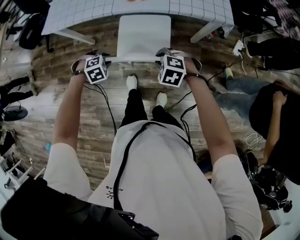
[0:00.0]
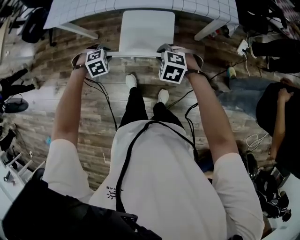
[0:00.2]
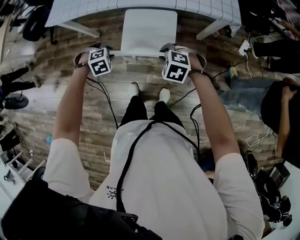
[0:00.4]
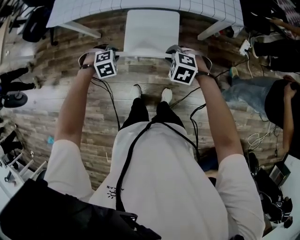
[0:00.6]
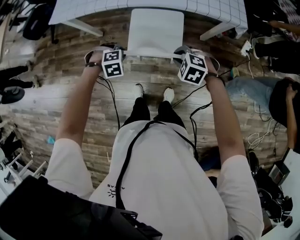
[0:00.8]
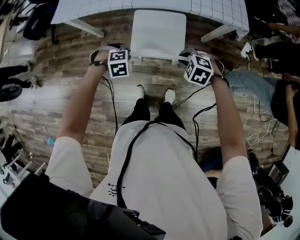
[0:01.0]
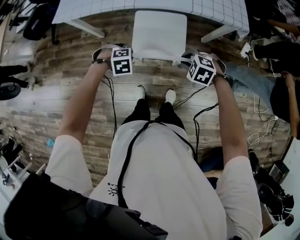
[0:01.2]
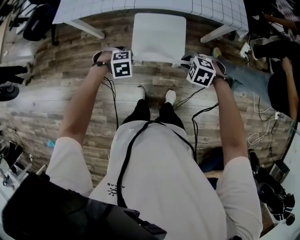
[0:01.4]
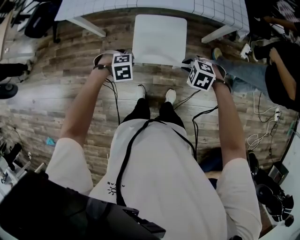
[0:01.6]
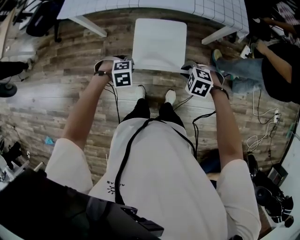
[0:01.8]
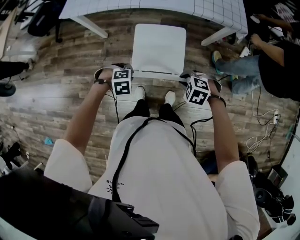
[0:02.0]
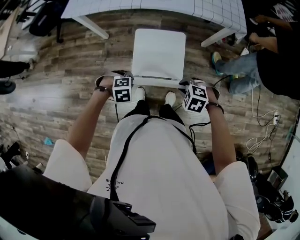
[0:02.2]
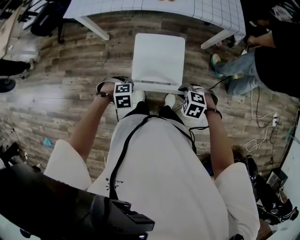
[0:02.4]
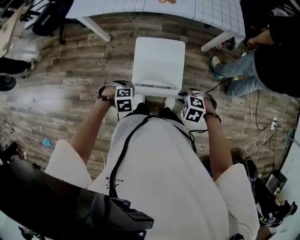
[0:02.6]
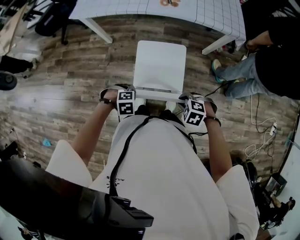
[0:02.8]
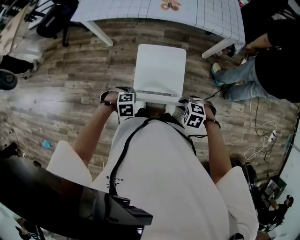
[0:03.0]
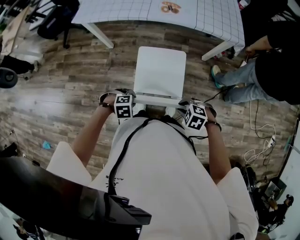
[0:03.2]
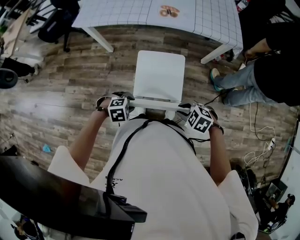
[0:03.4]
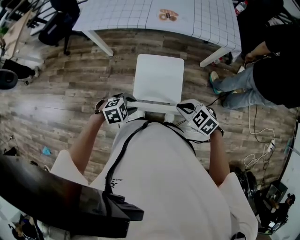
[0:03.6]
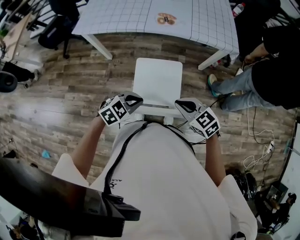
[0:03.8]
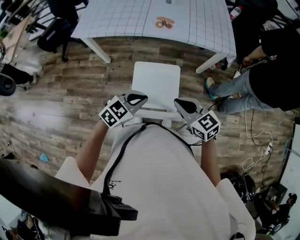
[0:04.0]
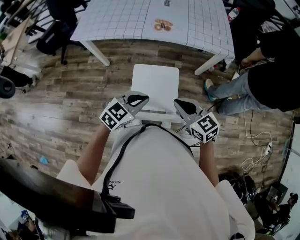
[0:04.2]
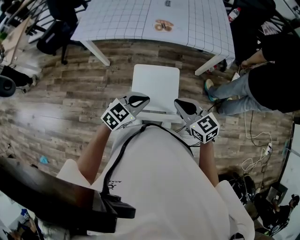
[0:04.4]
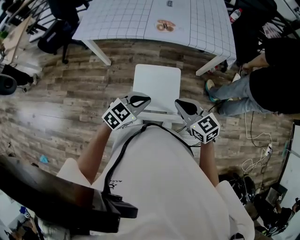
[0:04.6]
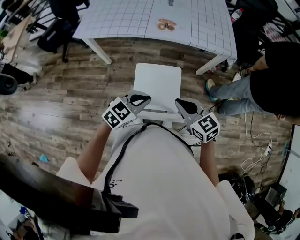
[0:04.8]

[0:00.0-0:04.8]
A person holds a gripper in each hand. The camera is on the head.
0:00.0 to 0:01.6: The left gripper changes place by approximately 5 cm. Meanwhile the right gripper changes place by some 5 cm.
0:01.6 to 0:03.2: The left gripper ends up approximately 20 cm from where it was. Meanwhile the right gripper moves about 20 cm.
0:03.2 to 0:04.8: The grippers both shift upward by some 15 cm. The right gripper points its fingers some 40 degrees further upward, and closes up, while the left gripper angles its fingers upward, by some 40 degrees, and closes up.

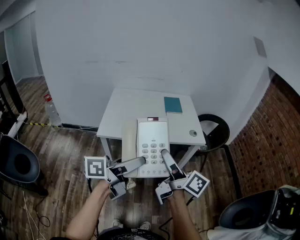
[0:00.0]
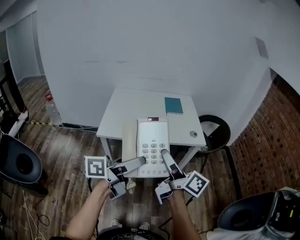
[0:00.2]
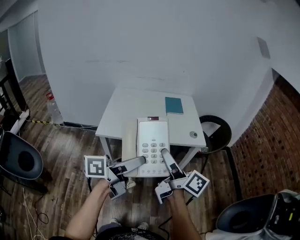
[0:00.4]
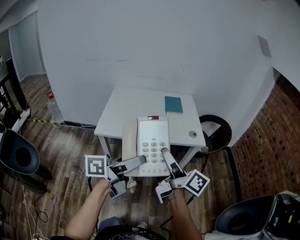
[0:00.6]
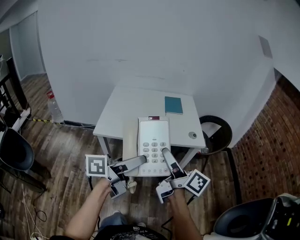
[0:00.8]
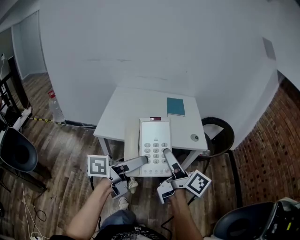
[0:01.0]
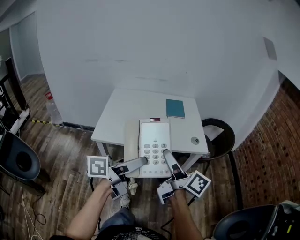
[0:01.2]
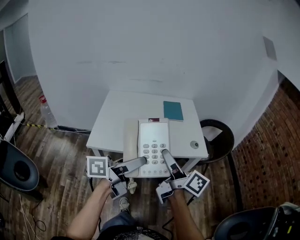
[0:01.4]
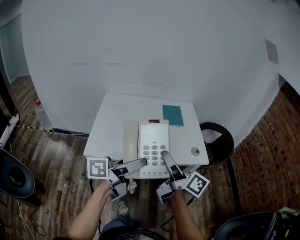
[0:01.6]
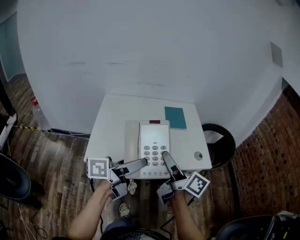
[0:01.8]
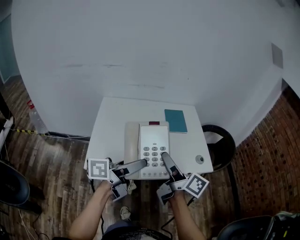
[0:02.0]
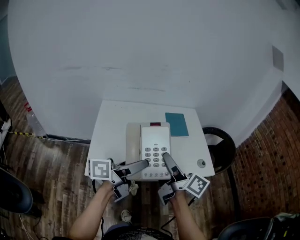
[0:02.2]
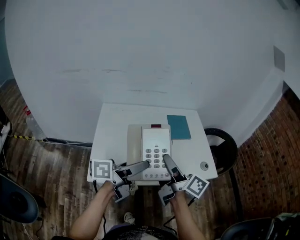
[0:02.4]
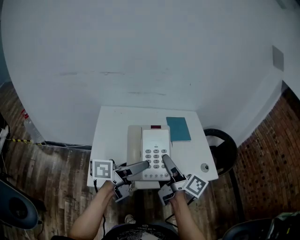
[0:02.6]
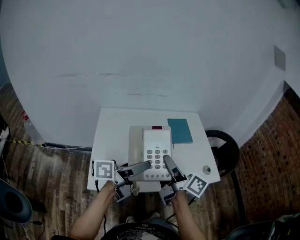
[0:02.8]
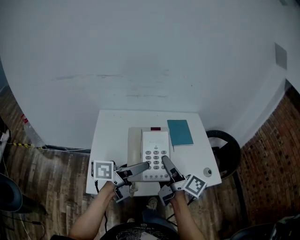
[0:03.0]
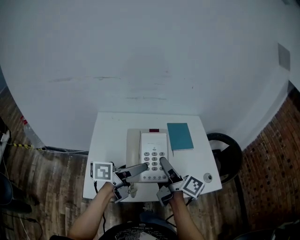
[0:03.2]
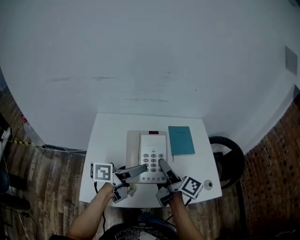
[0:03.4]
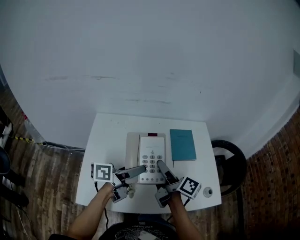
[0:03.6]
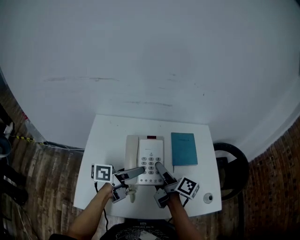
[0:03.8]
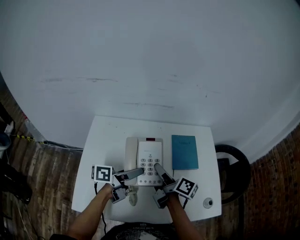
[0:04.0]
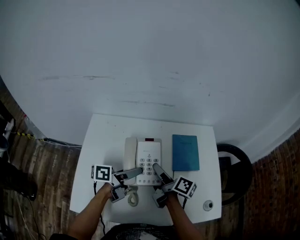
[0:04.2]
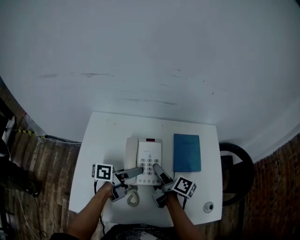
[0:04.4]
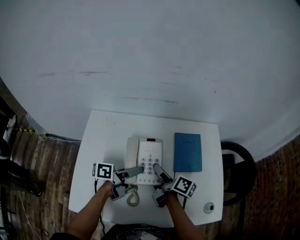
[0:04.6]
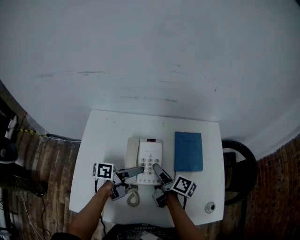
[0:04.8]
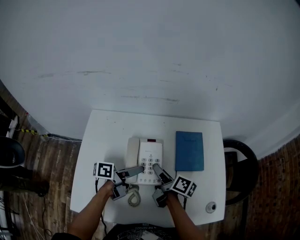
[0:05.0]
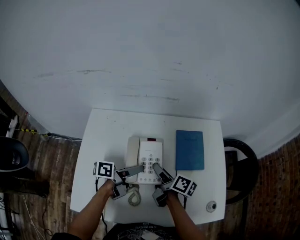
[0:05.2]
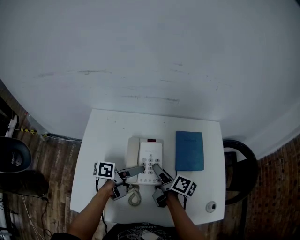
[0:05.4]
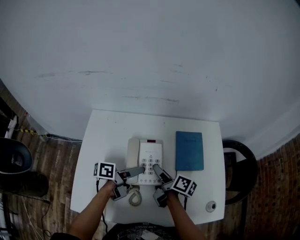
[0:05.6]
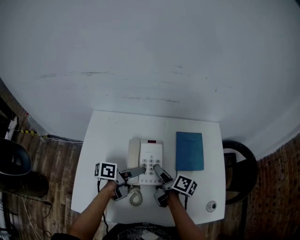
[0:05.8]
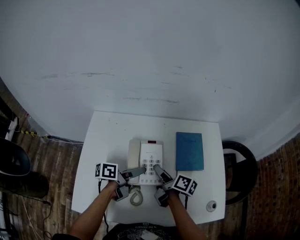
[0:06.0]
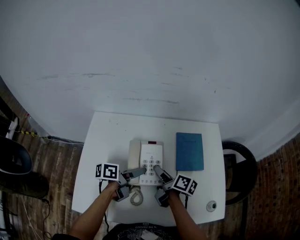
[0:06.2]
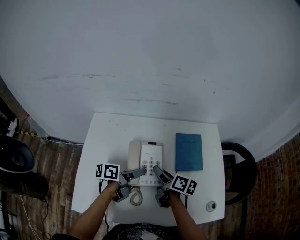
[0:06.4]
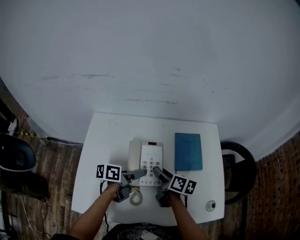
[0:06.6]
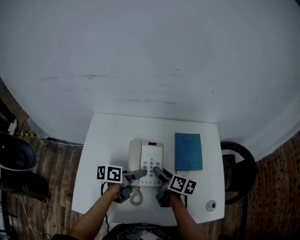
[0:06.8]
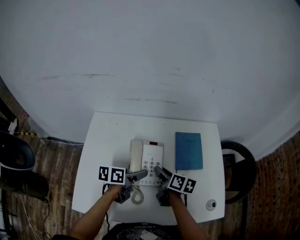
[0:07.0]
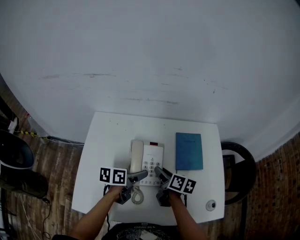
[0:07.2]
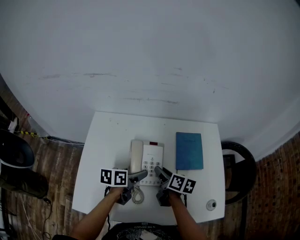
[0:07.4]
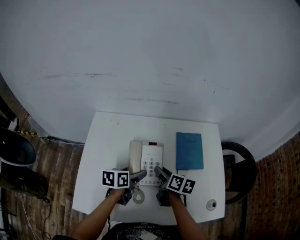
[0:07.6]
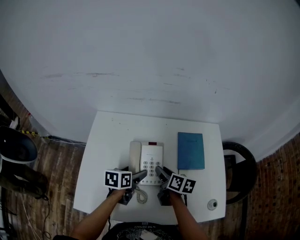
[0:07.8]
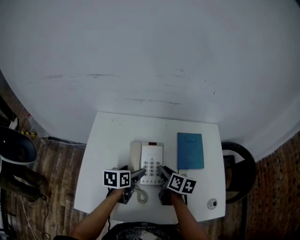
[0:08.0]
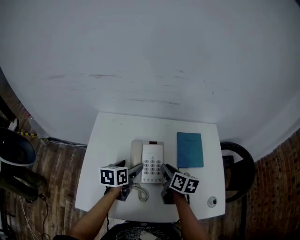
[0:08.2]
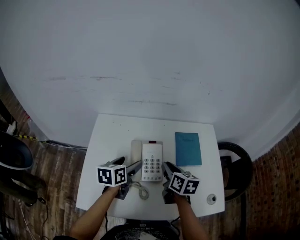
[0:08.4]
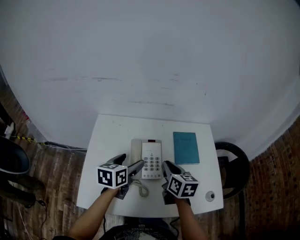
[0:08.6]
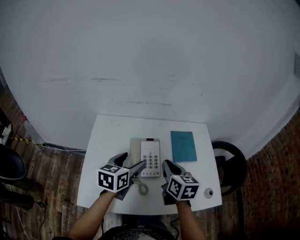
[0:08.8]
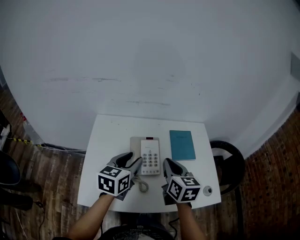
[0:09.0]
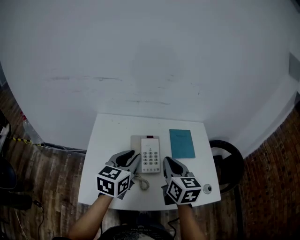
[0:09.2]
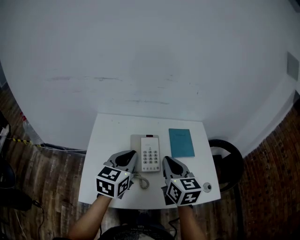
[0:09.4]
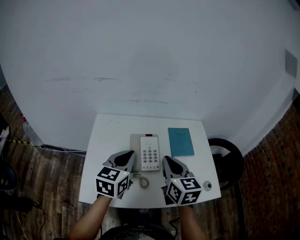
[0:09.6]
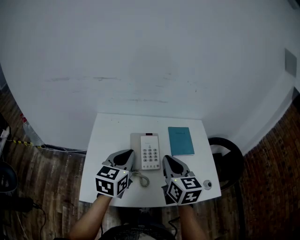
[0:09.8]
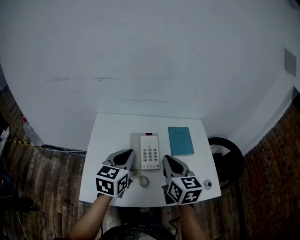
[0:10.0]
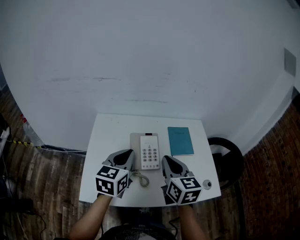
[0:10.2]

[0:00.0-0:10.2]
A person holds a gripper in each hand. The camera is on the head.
0:00.0 to 0:01.4: Both grippers travel together forward, roughly 15 cm.
0:01.4 to 0:03.0: The two grippers go approximately 25 cm forward and to the left.
0:03.0 to 0:04.4: The two grippers go some 25 cm forward and downward. The right gripper turns by some 20 degrees.
0:04.4 to 0:05.8: The grippers stay close to where they were, moving slightly.
0:05.8 to 0:07.2: The right gripper swivels about 20 degrees. Meanwhile the left gripper turns by about 30 degrees.
0:07.2 to 0:08.8: The left gripper goes about 15 cm upward, and turns by some 30 degrees, while the right gripper travels upward and backward by about 15 cm, swivels about 30 degrees, and closes up.
0:08.8 to 0:10.2: The two grippers go approximately 10 cm upward and backward. The left gripper closes.

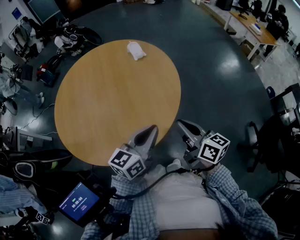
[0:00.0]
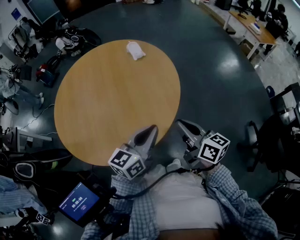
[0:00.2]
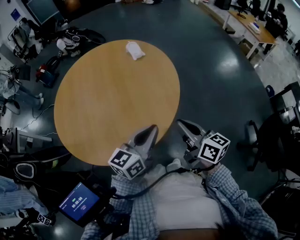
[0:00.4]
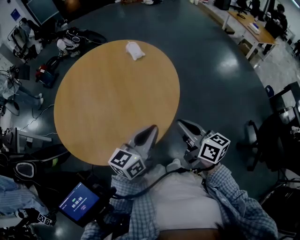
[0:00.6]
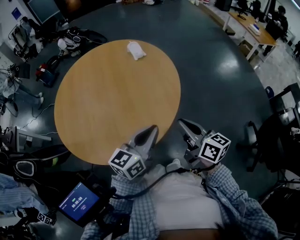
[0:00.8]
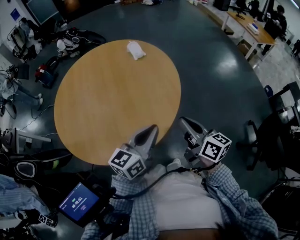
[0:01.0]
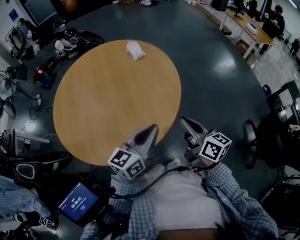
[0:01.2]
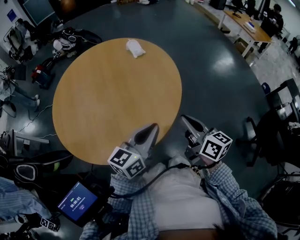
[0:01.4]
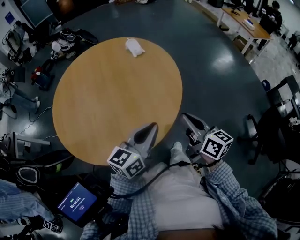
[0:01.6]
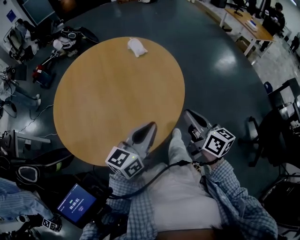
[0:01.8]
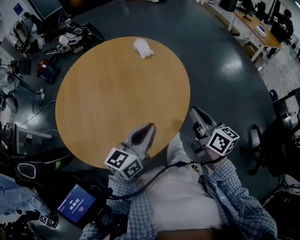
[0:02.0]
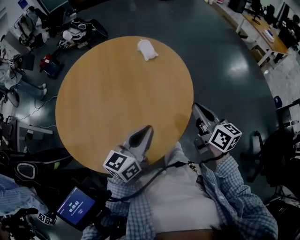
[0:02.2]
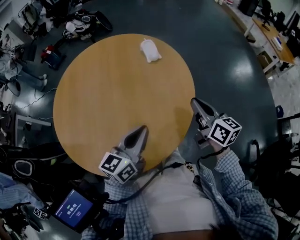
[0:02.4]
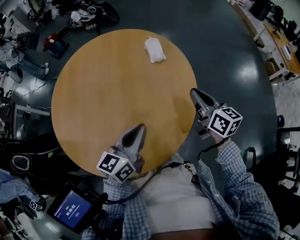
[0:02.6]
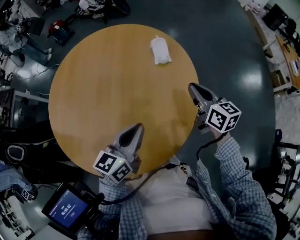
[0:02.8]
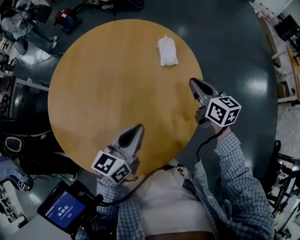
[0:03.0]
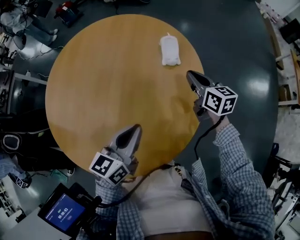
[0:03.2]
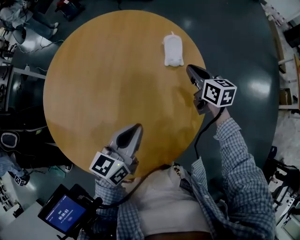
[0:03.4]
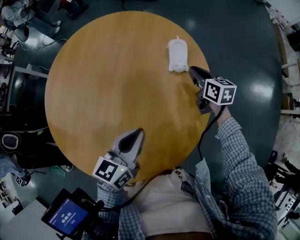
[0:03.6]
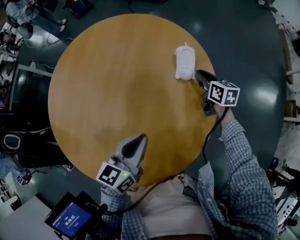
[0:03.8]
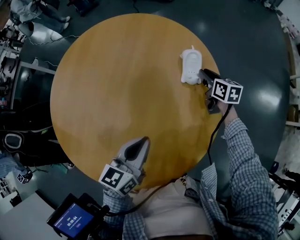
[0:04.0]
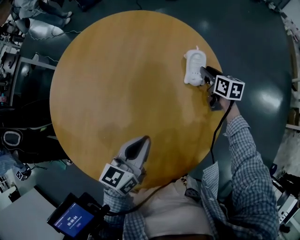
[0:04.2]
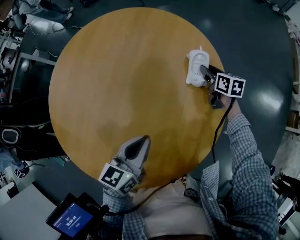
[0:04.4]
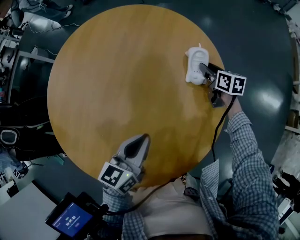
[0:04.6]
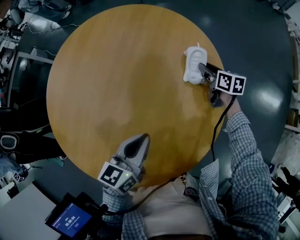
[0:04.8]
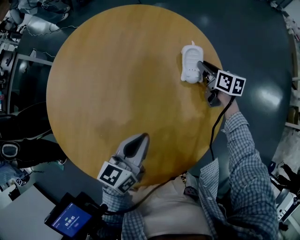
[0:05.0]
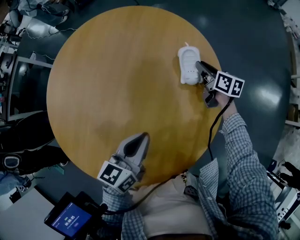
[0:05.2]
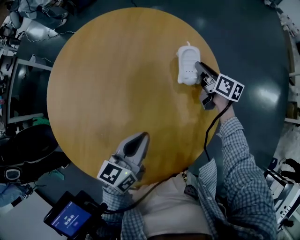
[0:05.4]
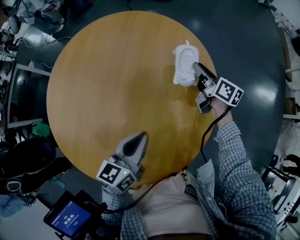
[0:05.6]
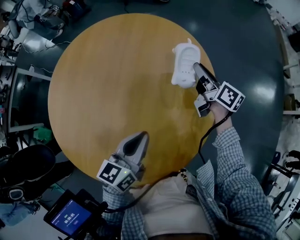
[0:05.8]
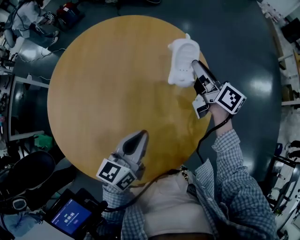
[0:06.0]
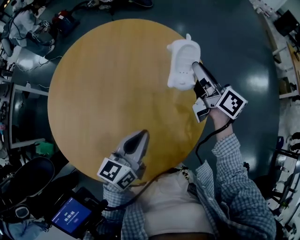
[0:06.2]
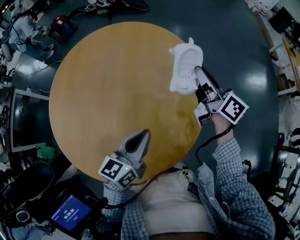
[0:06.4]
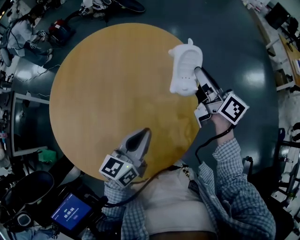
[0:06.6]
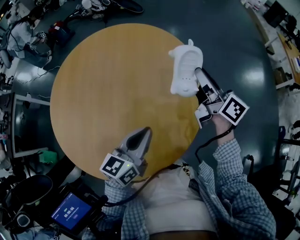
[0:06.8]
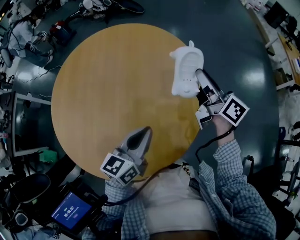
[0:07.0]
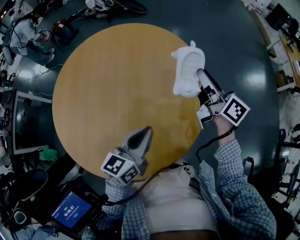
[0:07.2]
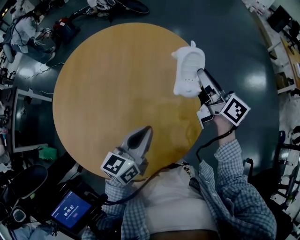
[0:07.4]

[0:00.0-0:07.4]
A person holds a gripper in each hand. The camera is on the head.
0:00.0 to 0:01.4: The grippers stay close to where they were, moving slightly.
0:01.4 to 0:03.0: The left gripper moves roughly 25 cm, and swivels approximately 30 degrees. Meanwhile the right gripper ends up roughly 40 cm from where it was, and rotates approximately 30 degrees.
0:03.0 to 0:04.4: The right gripper travels forward and downward by about 25 cm, changes its angle by roughly 20 degrees, and opens; the left gripper moves forward, some 5 cm.
0:04.4 to 0:06.0: The right gripper travels upward and backward by approximately 20 cm, and points its fingers roughly 40 degrees further upward, while the left gripper shifts approximately 5 cm backward.
0:06.0 to 0:07.4: The right gripper goes about 15 cm backward, to the right and upward; the left gripper shifts by approximately 5 cm.

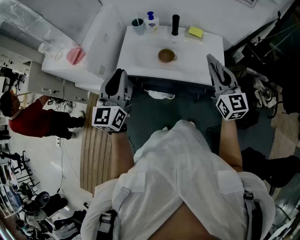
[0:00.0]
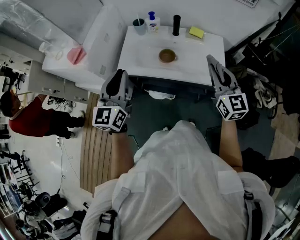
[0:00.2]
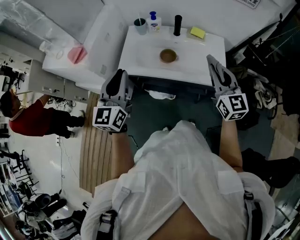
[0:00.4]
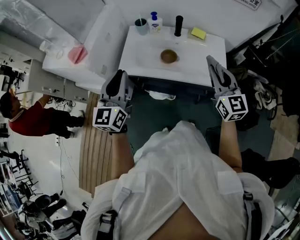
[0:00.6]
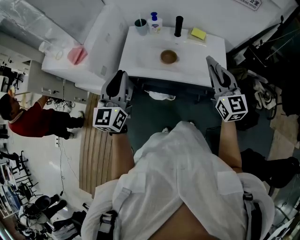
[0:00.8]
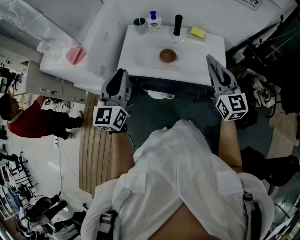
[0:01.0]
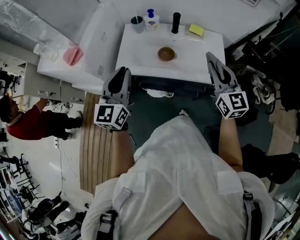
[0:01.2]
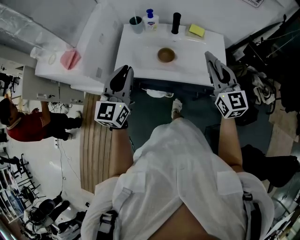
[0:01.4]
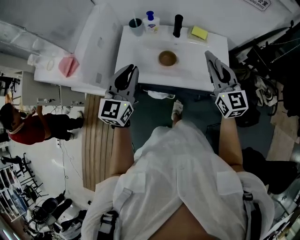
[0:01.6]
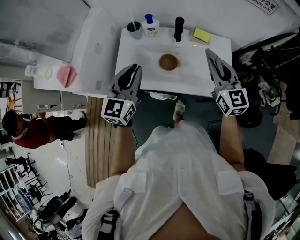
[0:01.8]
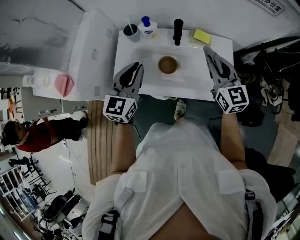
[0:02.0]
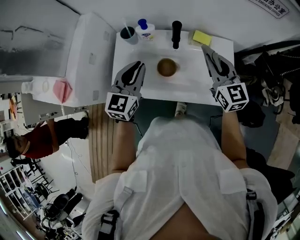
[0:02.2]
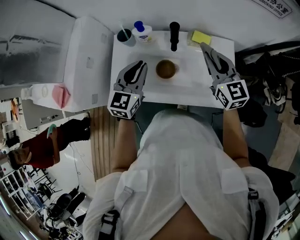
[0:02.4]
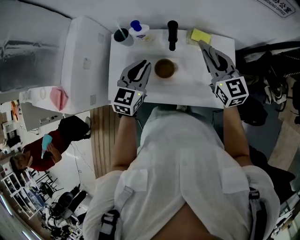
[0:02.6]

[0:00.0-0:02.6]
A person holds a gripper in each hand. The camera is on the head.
0:00.0 to 0:01.2: There are only small adjustments of the grippers.
0:01.2 to 0:02.6: The right gripper is displaced forward by about 25 cm. The left gripper heads forward, downward and to the right, covering about 30 cm, and swivels approximately 30 degrees.
